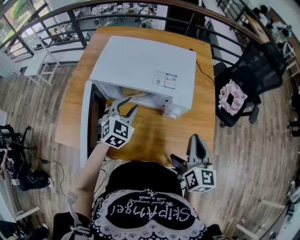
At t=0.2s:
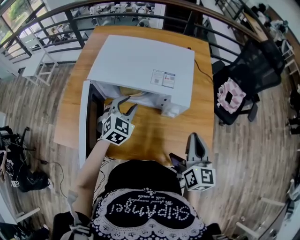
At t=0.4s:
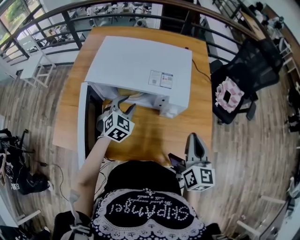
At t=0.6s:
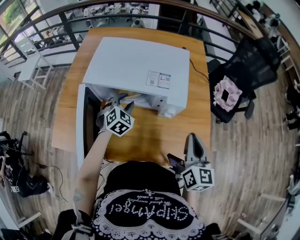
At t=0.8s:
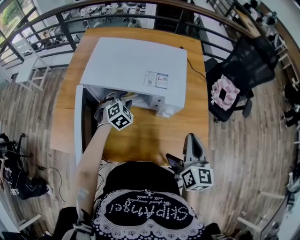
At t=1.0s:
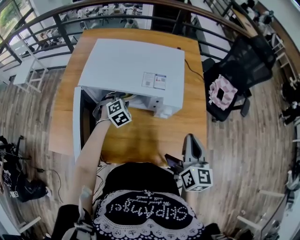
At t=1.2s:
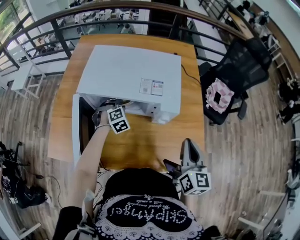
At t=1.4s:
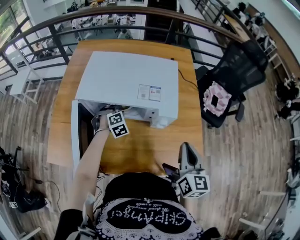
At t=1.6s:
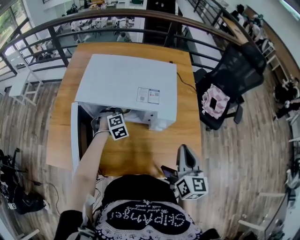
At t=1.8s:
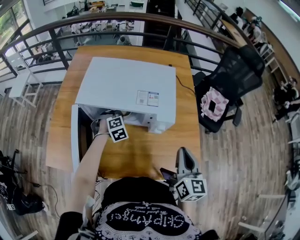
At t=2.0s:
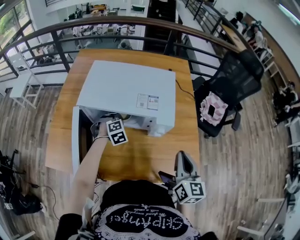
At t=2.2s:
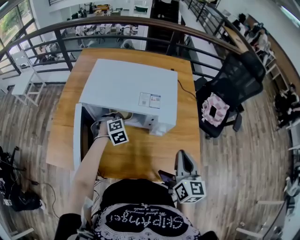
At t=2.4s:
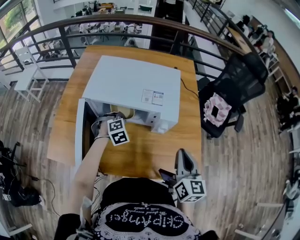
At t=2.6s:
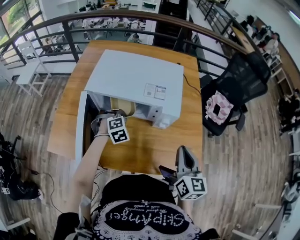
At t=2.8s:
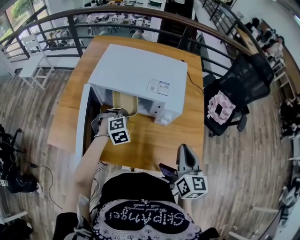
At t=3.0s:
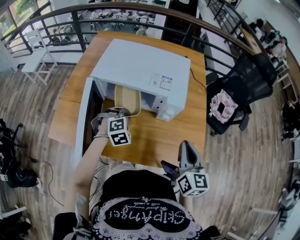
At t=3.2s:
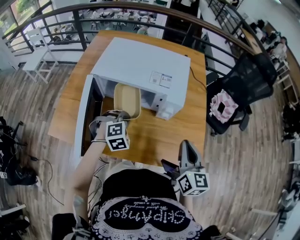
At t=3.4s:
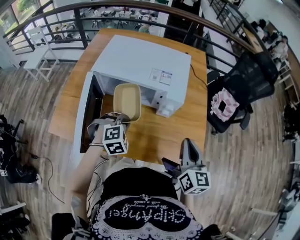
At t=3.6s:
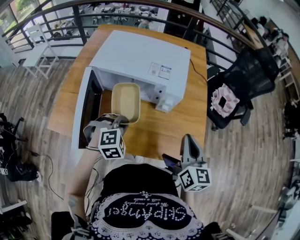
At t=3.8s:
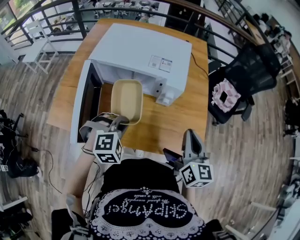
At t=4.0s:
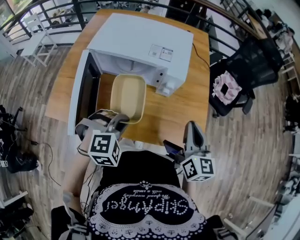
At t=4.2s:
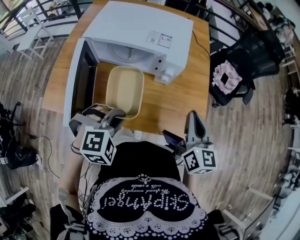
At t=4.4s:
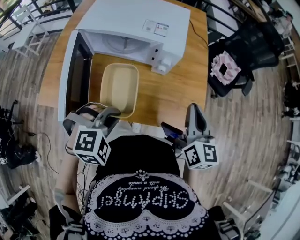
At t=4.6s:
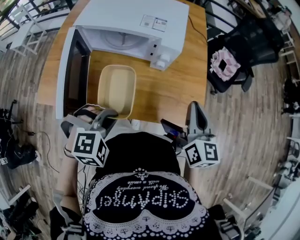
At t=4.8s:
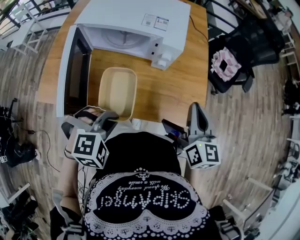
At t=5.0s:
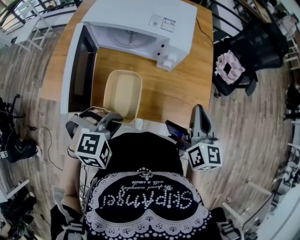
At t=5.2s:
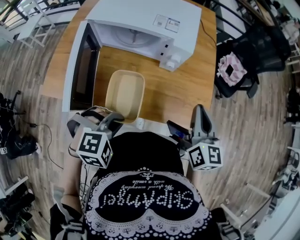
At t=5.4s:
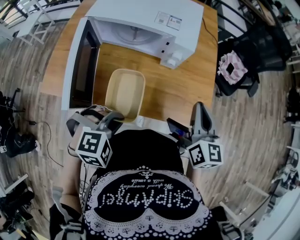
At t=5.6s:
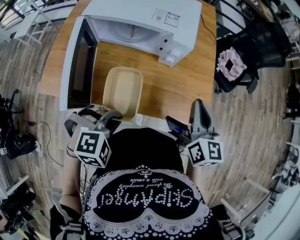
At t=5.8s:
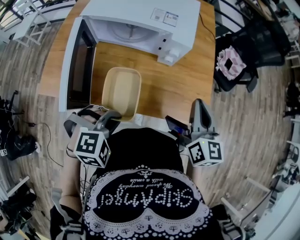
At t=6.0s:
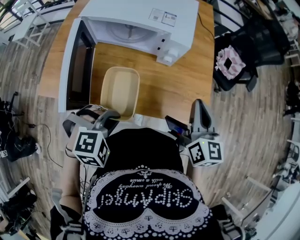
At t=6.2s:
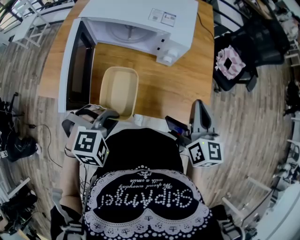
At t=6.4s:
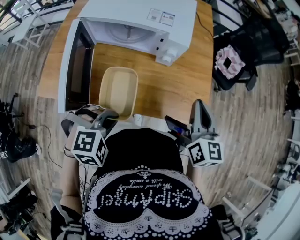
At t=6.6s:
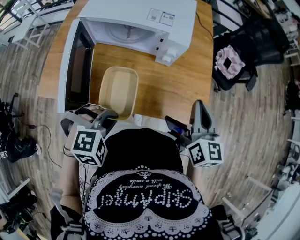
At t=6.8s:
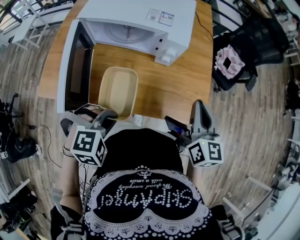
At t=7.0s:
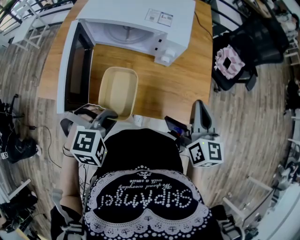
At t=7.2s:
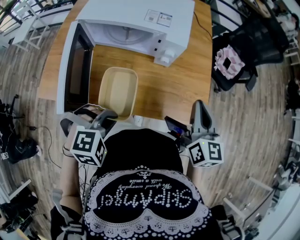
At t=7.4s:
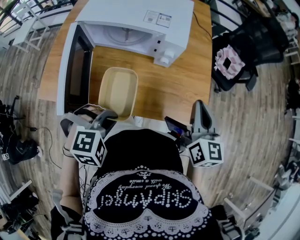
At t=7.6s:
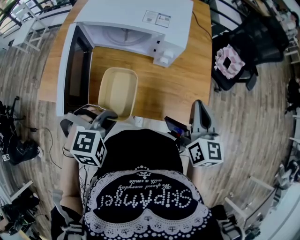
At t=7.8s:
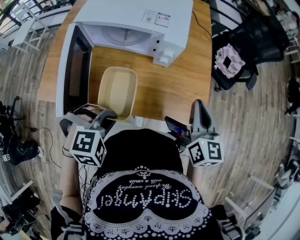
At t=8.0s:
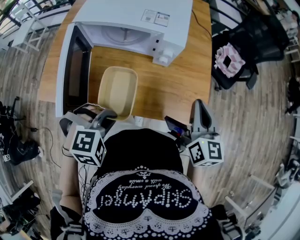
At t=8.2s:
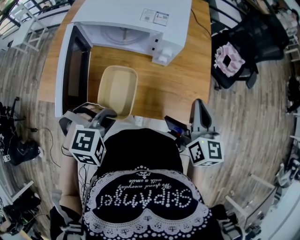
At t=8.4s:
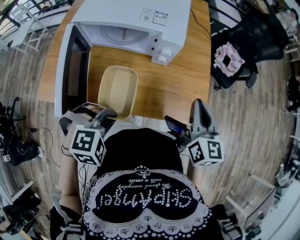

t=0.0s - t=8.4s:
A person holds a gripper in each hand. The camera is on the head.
t=0.0s - t=1.4s: The left gripper goes approximately 15 cm downward and forward, rotates some 40 degrees, and closes.
t=1.4s - t=2.8s: The left gripper travels backward and upward by about 10 cm.
t=2.8s - t=4.2s: The left gripper shifts roughly 20 cm backward and upward.
t=4.2s - t=5.6s: The left gripper is displaced backward by some 5 cm.
t=5.6s - t=7.0s: The grippers make only small movements.
t=7.0s - t=8.4s: The two grippers keep their place.

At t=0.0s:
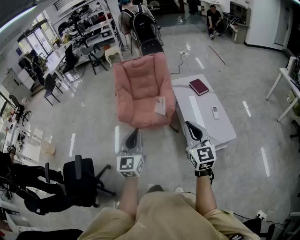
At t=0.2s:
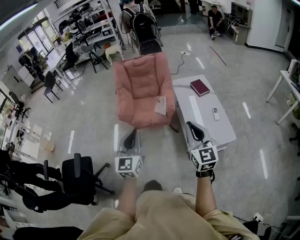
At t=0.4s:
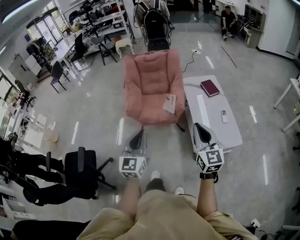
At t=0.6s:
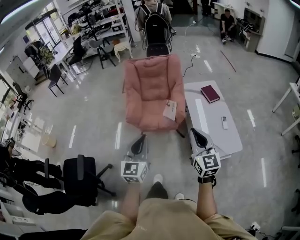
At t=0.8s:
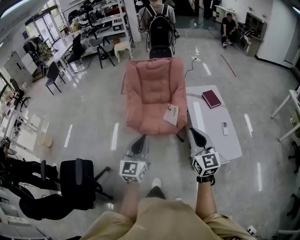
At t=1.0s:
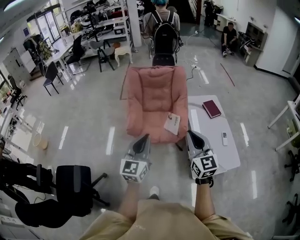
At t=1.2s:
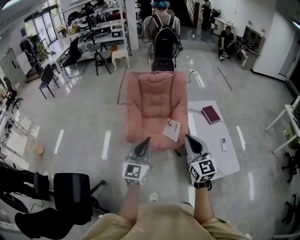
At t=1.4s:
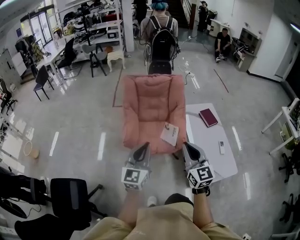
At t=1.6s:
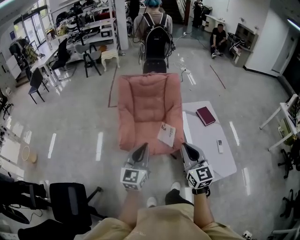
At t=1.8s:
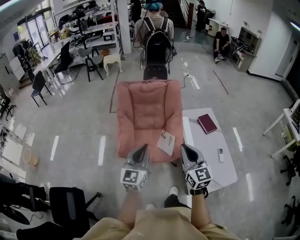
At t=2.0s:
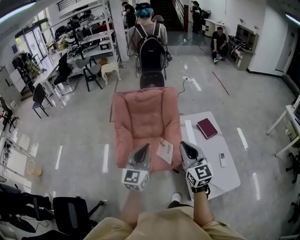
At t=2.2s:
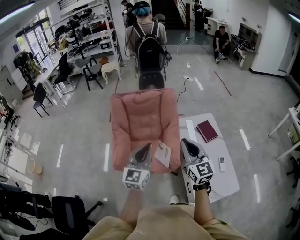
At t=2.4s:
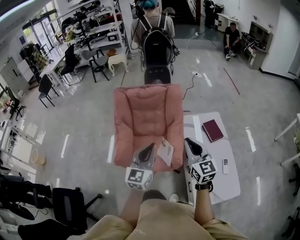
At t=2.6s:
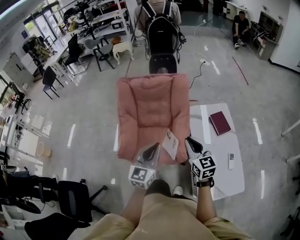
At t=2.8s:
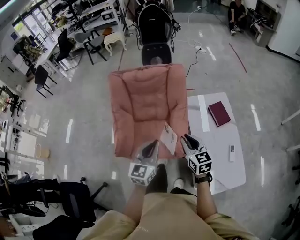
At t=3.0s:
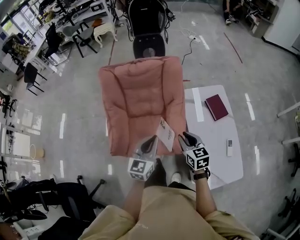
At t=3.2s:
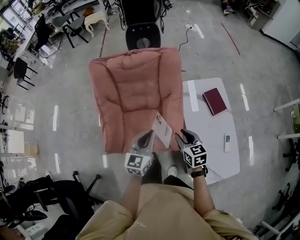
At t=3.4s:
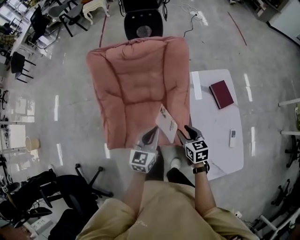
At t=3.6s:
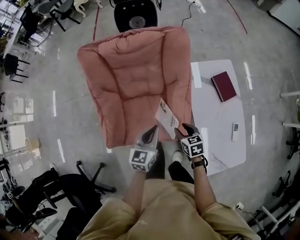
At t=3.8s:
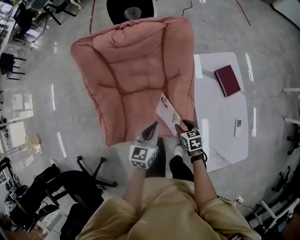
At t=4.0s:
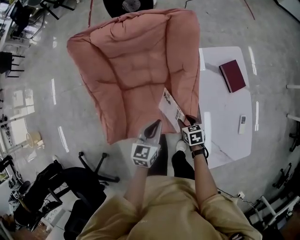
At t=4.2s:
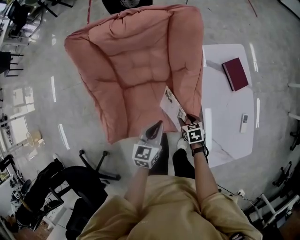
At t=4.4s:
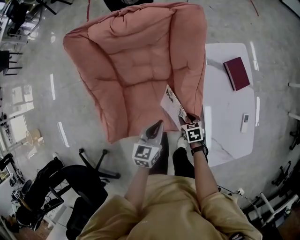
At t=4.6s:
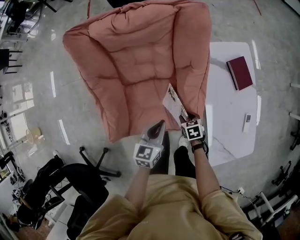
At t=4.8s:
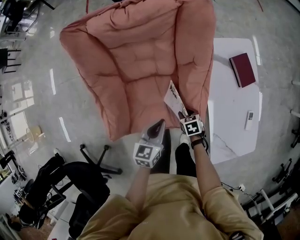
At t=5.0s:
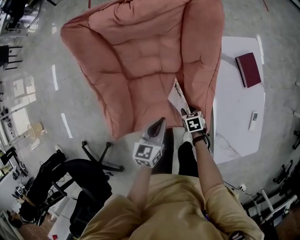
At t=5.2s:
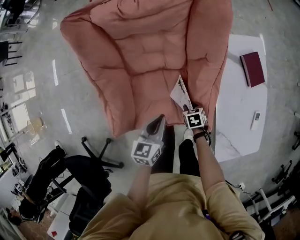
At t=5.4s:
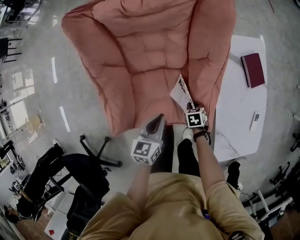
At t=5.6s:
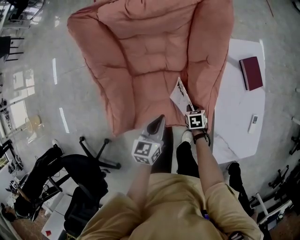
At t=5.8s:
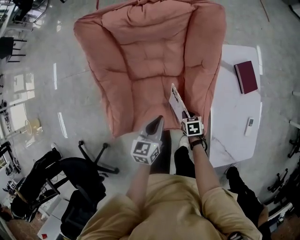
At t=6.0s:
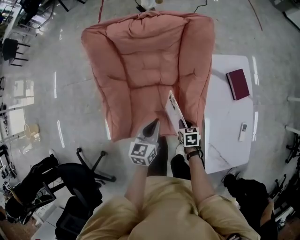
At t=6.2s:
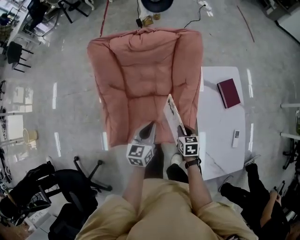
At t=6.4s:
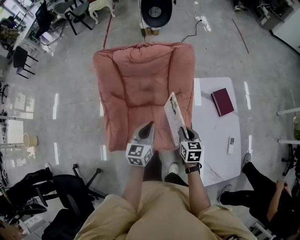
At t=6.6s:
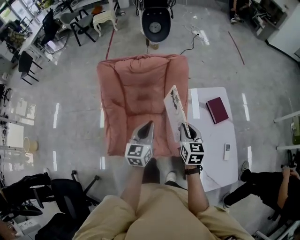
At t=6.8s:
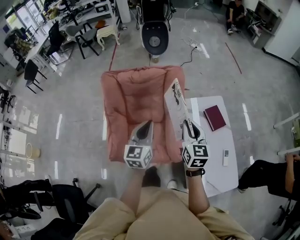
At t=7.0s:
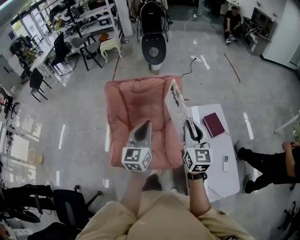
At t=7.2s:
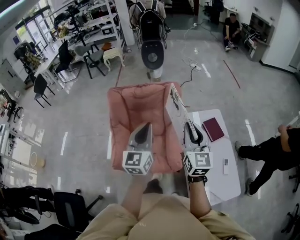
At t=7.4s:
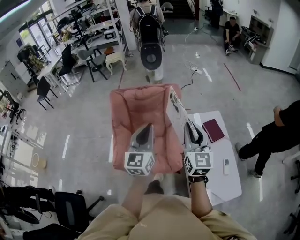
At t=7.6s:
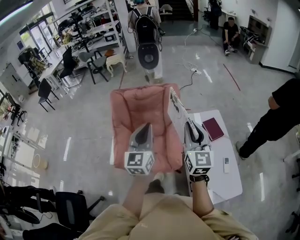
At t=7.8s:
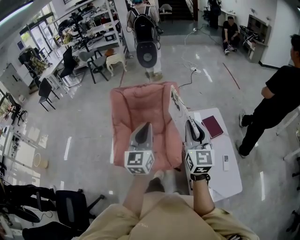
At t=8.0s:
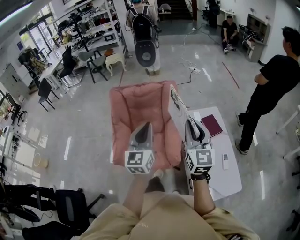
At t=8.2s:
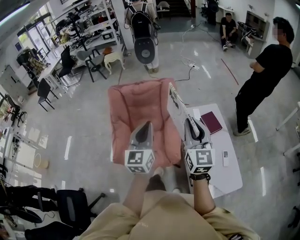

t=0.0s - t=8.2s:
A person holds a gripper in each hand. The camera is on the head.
t=0.0s - t=1.6s: Both grippers move forward and to the left, approximately 35 cm.
t=1.6s - t=3.2s: The right gripper moves forward and downward, about 40 cm, points its fingers roughly 30 degrees further downward, and opens; the left gripper heads forward, downward and to the right, covering approximately 40 cm.
t=3.2s - t=5.0s: The left gripper goes roughly 25 cm downward, and swivels about 20 degrees. Meanwhile the right gripper heads downward, covering roughly 35 cm, and tips its fingers downward by approximately 30 degrees.
t=5.0s - t=6.6s: The right gripper goes about 40 cm upward, tips its fingers upward by some 40 degrees, and closes up; the left gripper moves upward, about 25 cm, and turns by approximately 20 degrees.
t=6.6s - t=8.2s: The left gripper heads upward, backward and to the right, covering approximately 30 cm, and changes its angle by some 20 degrees, while the right gripper heads upward and backward, covering some 30 cm, and points its fingers about 30 degrees further upward.

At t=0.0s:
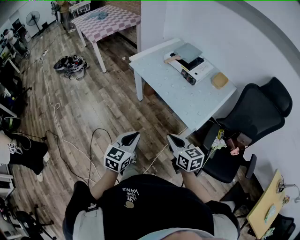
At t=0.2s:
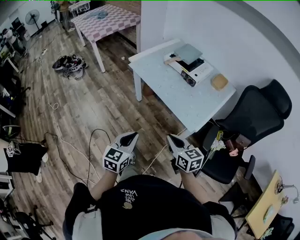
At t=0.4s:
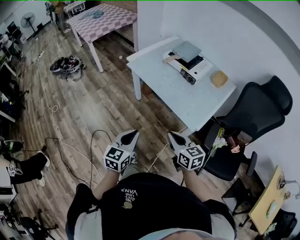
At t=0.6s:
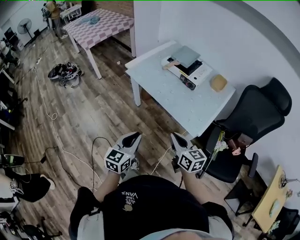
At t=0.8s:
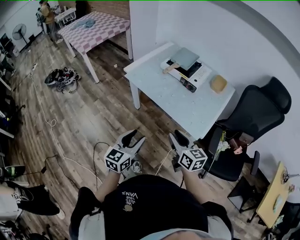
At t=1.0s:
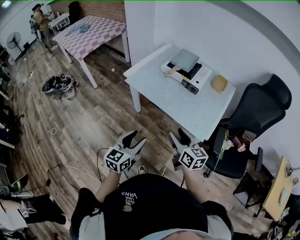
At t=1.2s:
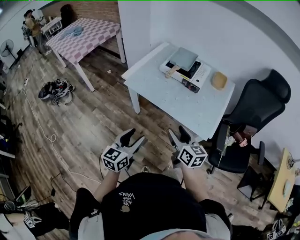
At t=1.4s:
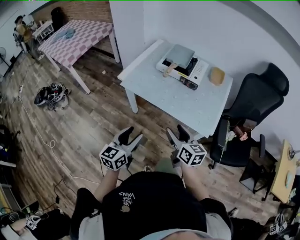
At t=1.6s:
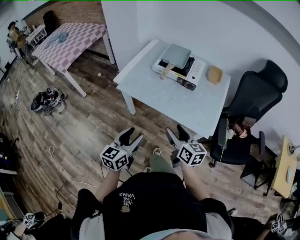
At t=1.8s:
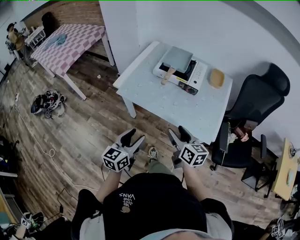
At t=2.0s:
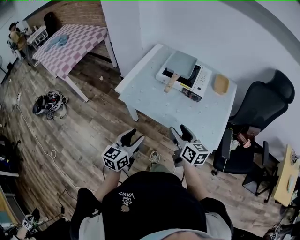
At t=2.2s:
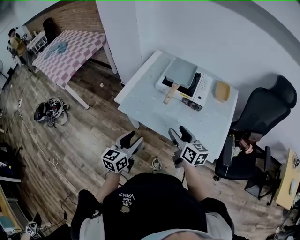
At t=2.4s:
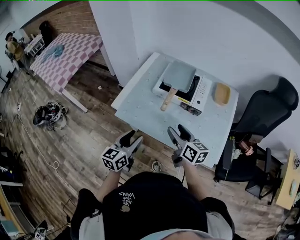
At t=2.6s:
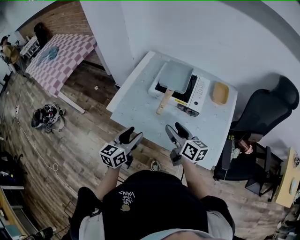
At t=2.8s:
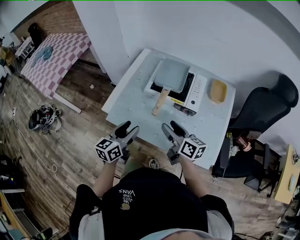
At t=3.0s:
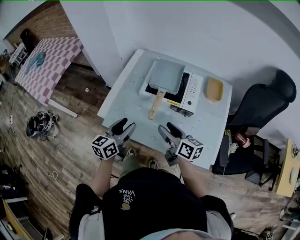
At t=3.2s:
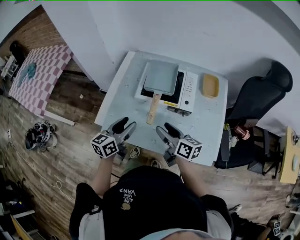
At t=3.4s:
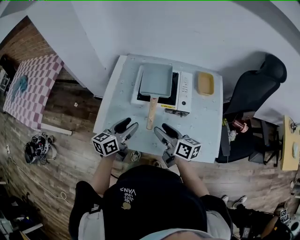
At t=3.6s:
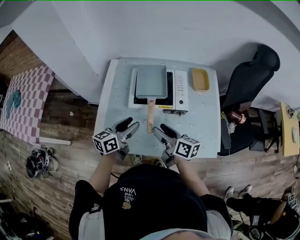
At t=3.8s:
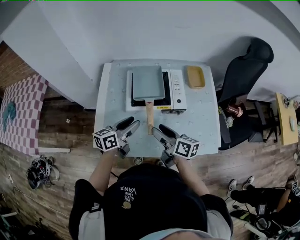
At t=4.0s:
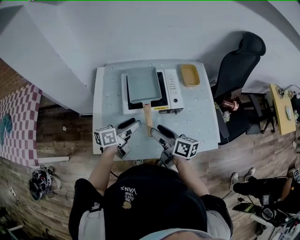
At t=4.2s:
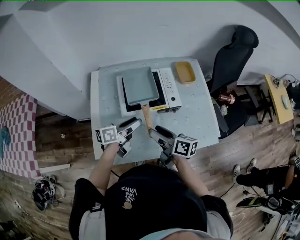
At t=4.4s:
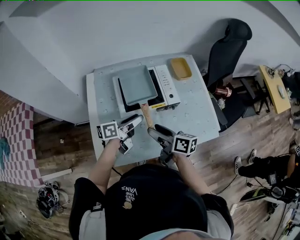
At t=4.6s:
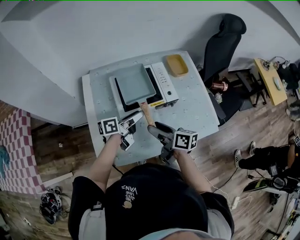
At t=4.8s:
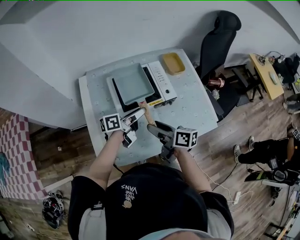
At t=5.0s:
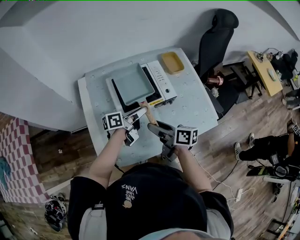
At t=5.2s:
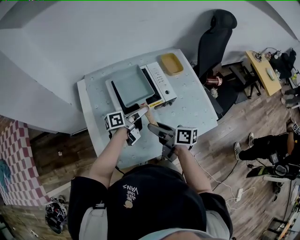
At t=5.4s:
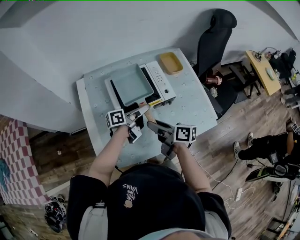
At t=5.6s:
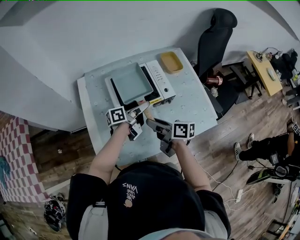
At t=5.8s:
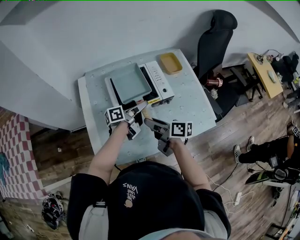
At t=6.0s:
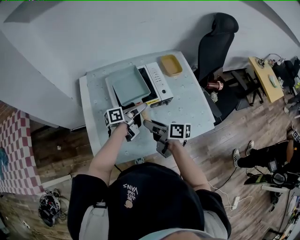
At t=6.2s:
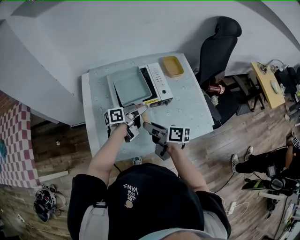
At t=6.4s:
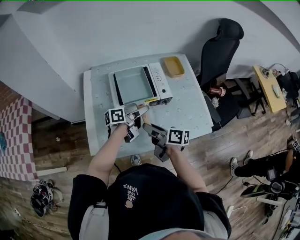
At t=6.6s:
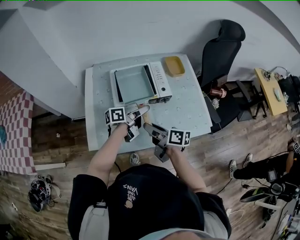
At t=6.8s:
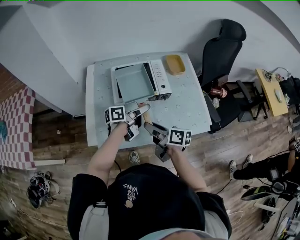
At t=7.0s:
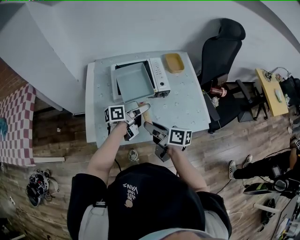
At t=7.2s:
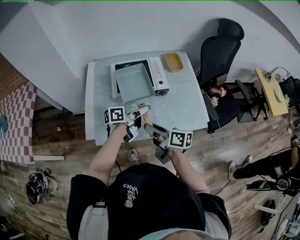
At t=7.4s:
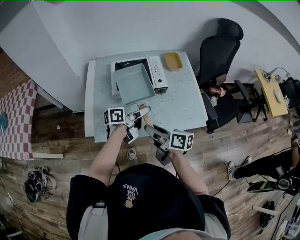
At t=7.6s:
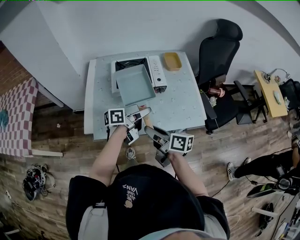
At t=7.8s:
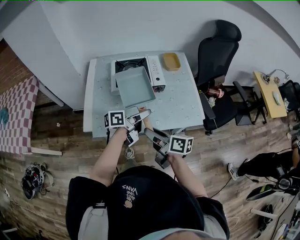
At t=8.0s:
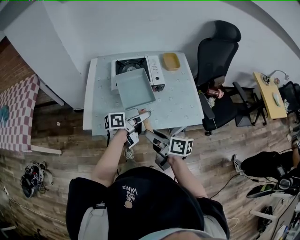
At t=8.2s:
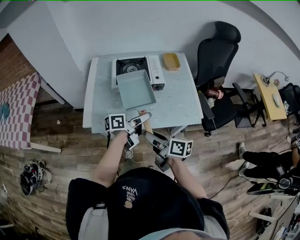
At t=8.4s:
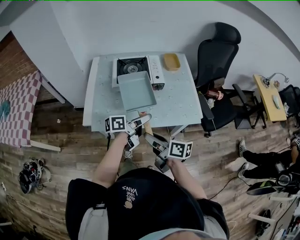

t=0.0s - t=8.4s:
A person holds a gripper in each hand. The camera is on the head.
t=0.0s - t=1.4s: Both grippers move forward and to the left, about 20 cm. The left gripper turns by about 20 degrees, and opens, while the right gripper changes its angle by approximately 30 degrees, and opens up.
t=1.4s - t=2.8s: The grippers both shift forward by approximately 25 cm.
t=2.8s - t=4.2s: The left gripper changes place by roughly 20 cm, and swivels approximately 50 degrees, while the right gripper ends up about 5 cm from where it was, and rotates approximately 30 degrees.
t=4.2s - t=5.6s: The right gripper closes its fingers, while the left gripper travels forward and to the right by about 10 cm.
t=5.6s - t=7.0s: The grippers both shift backward by some 10 cm.
t=7.0s - t=8.4s: Both grippers travel together backward, roughly 10 cm.
